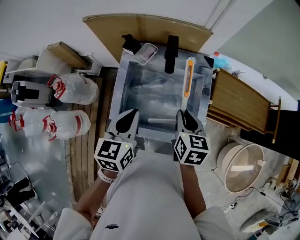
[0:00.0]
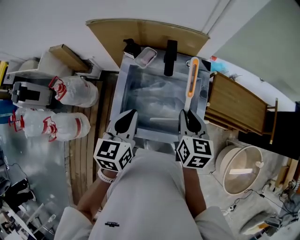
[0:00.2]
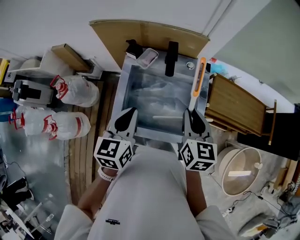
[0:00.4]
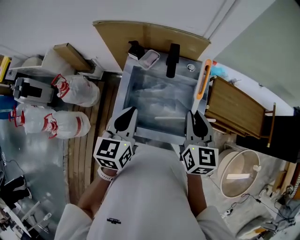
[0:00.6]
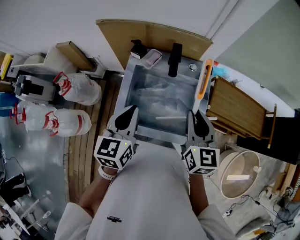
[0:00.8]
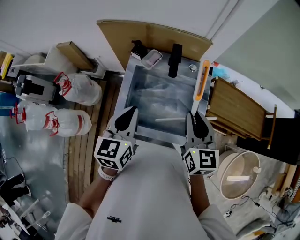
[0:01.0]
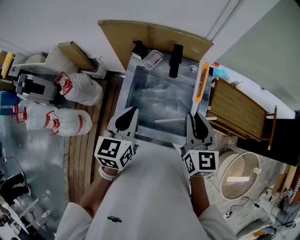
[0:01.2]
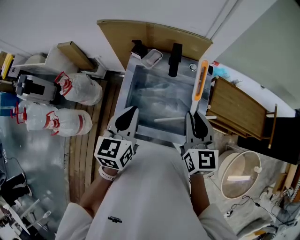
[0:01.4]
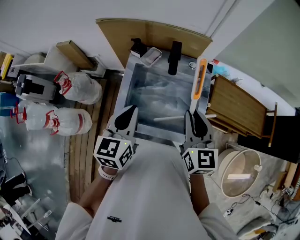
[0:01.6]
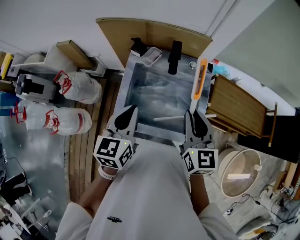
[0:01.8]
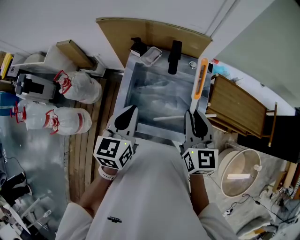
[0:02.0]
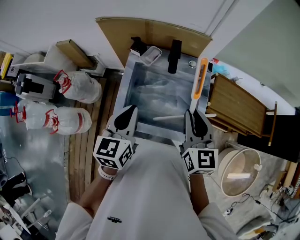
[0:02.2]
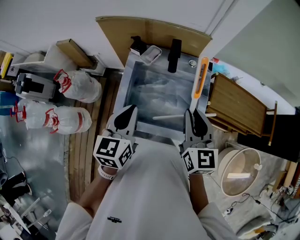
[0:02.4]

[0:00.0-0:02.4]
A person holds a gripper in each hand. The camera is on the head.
0:00.0 to 0:01.2: The left gripper shifts about 5 cm upward. Meanwhile the right gripper travels upward by approximately 10 cm, and turns by some 30 degrees.
0:01.2 to 0:02.4: Both grippers stay about where they are.

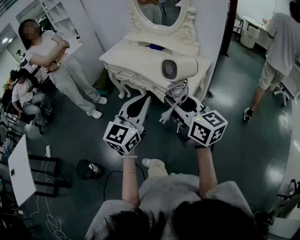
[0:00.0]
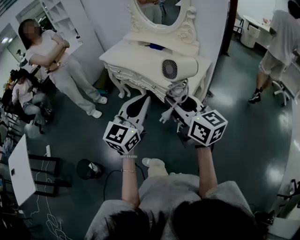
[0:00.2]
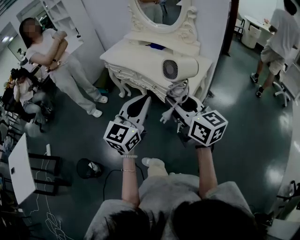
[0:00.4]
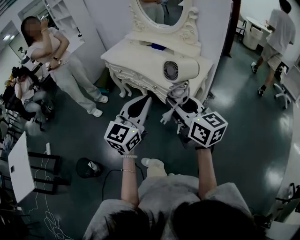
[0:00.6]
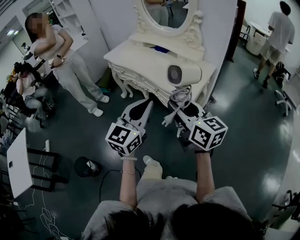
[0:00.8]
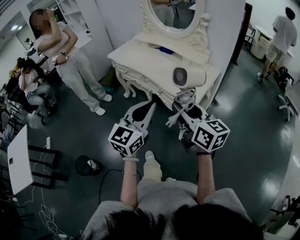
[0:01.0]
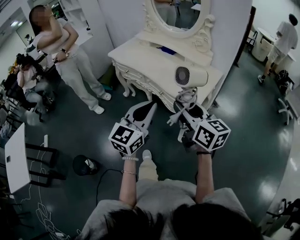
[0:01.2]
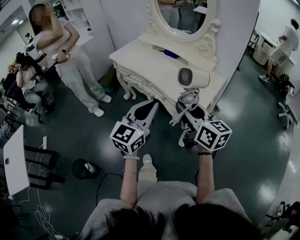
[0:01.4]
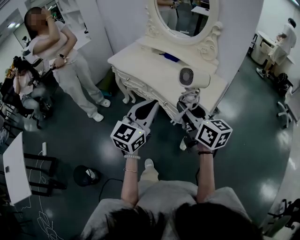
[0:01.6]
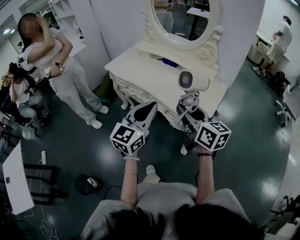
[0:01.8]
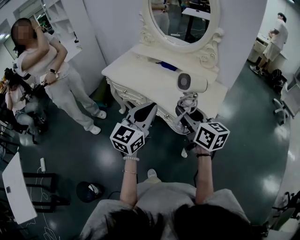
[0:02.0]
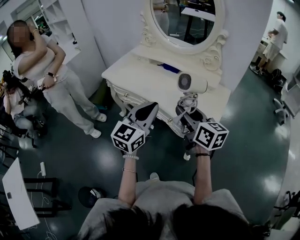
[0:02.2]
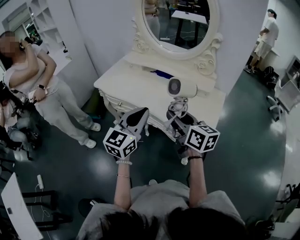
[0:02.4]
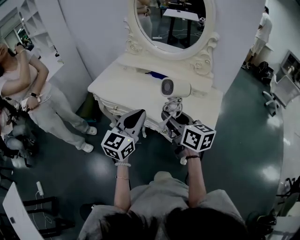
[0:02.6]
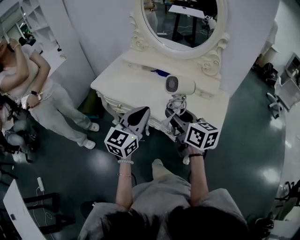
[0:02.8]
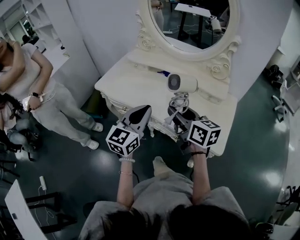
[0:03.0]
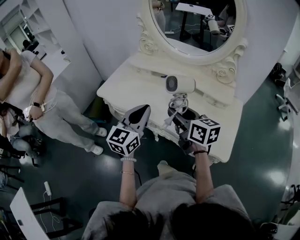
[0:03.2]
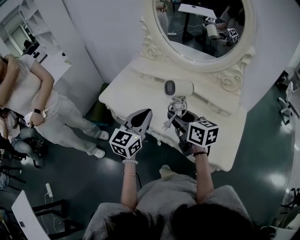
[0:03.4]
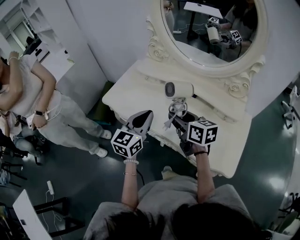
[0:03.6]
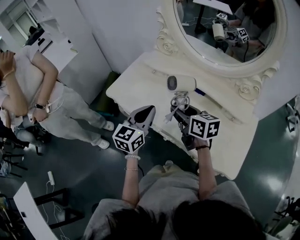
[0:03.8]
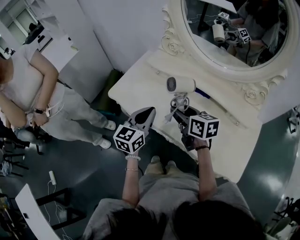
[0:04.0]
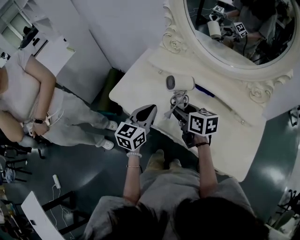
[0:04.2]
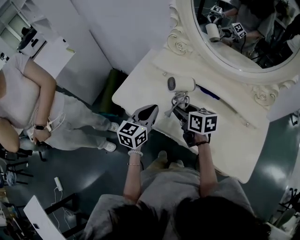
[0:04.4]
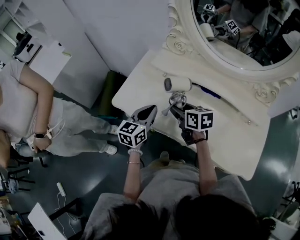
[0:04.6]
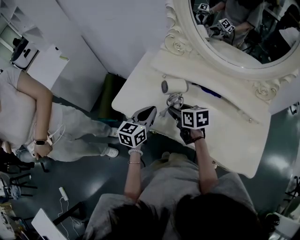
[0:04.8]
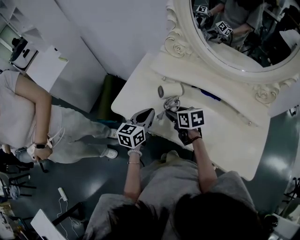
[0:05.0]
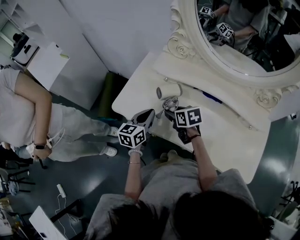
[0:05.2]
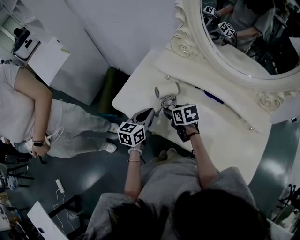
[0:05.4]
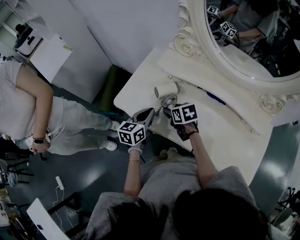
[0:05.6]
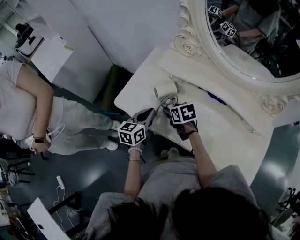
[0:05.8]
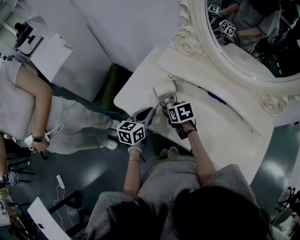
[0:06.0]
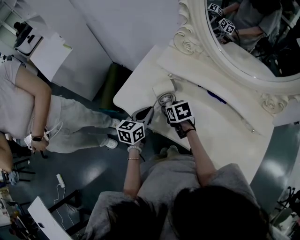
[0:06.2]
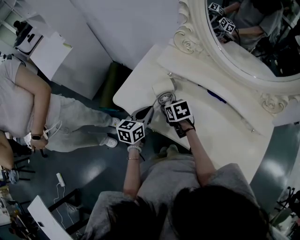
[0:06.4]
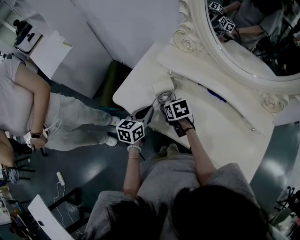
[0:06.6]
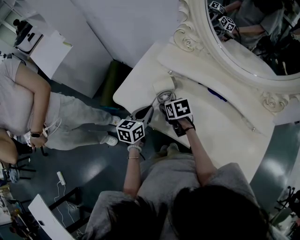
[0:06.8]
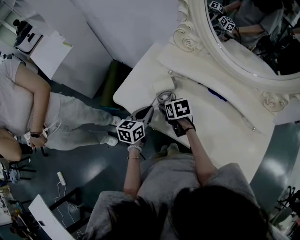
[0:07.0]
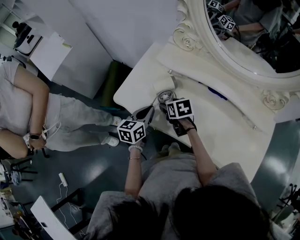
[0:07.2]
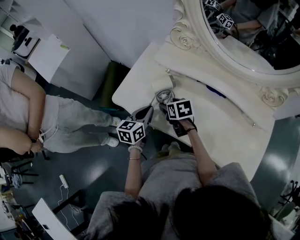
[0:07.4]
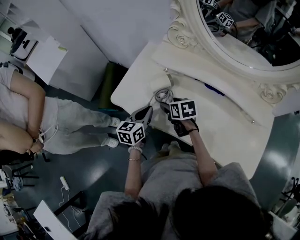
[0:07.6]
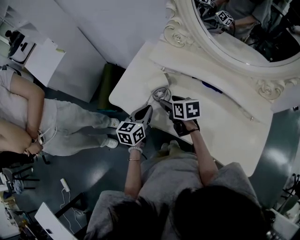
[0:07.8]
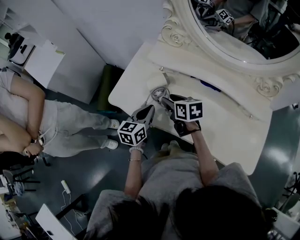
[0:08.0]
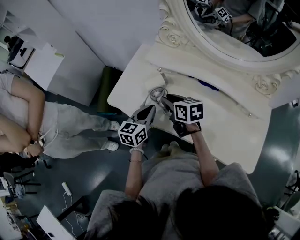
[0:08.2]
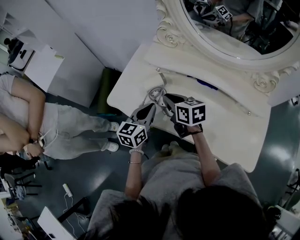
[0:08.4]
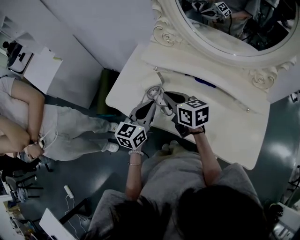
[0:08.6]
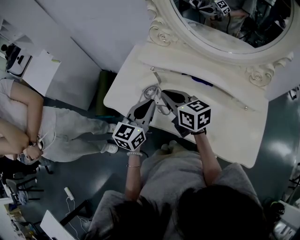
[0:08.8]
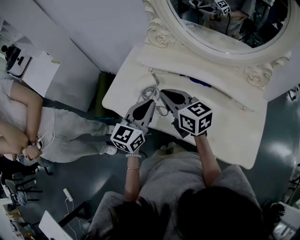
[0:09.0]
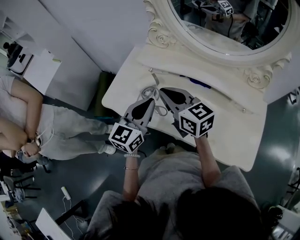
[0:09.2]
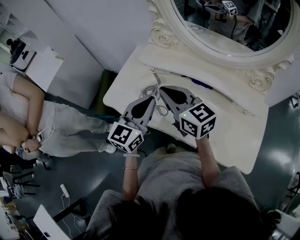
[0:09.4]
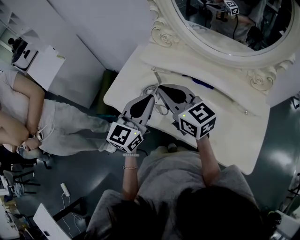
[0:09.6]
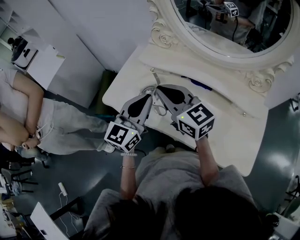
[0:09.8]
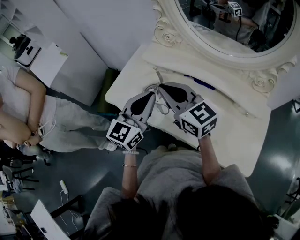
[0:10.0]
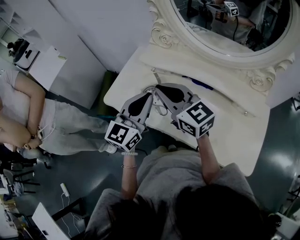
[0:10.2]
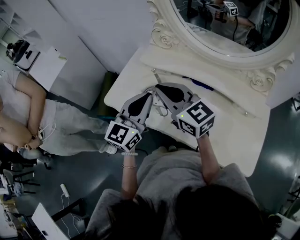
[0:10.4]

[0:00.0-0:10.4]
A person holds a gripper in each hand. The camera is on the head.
0:00.0 to 0:01.4: The grippers both shift forward by some 10 cm.
0:01.4 to 0:03.0: The grippers both shift forward and to the left by about 35 cm.
0:03.0 to 0:04.4: Both grippers travel together forward, to the left and downward, approximately 30 cm. The right gripper rotates roughly 20 degrees.
0:04.4 to 0:06.0: The left gripper is displaced downward and forward by some 10 cm. The right gripper moves downward, to the left and forward, some 15 cm, and swivels some 30 degrees.
0:06.0 to 0:07.4: The grippers stay close to where they were, moving slightly.
0:07.4 to 0:09.0: The left gripper heads upward and to the right, covering about 15 cm, and rotates some 30 degrees; the right gripper goes roughly 20 cm upward, tilts its fingers some 40 degrees upward, and closes.
0:09.0 to 0:10.4: The right gripper goes some 5 cm upward.

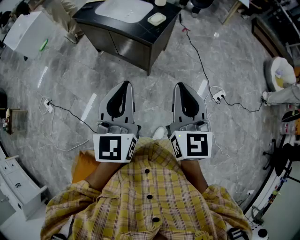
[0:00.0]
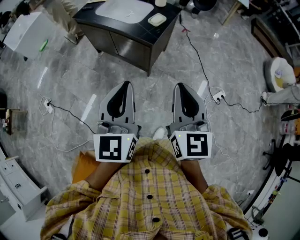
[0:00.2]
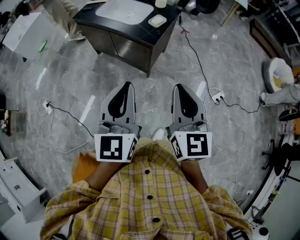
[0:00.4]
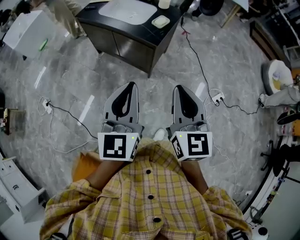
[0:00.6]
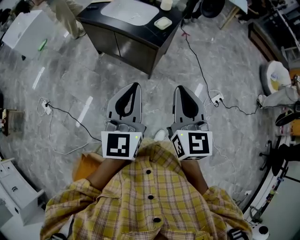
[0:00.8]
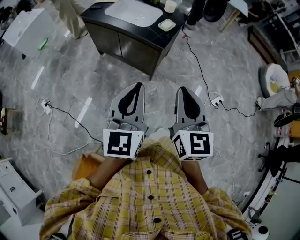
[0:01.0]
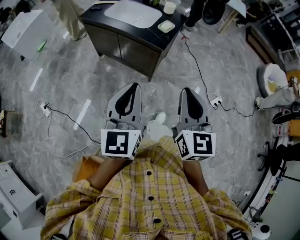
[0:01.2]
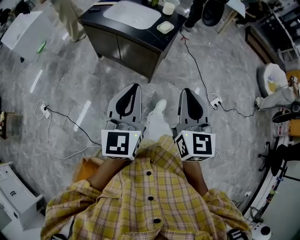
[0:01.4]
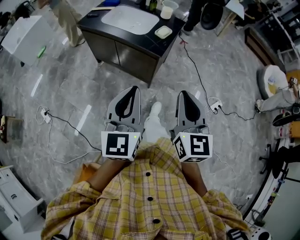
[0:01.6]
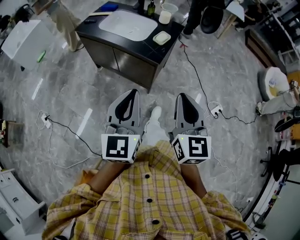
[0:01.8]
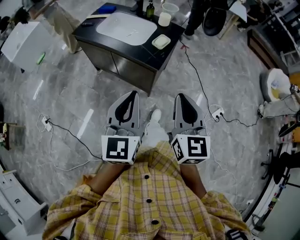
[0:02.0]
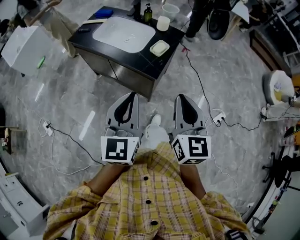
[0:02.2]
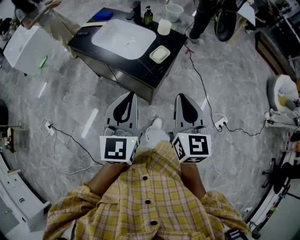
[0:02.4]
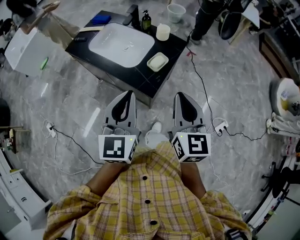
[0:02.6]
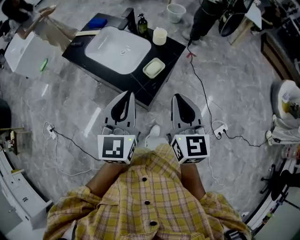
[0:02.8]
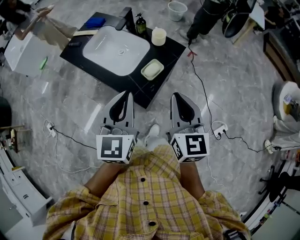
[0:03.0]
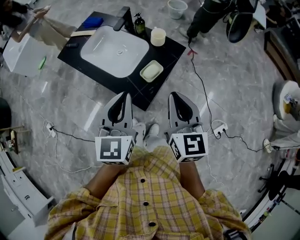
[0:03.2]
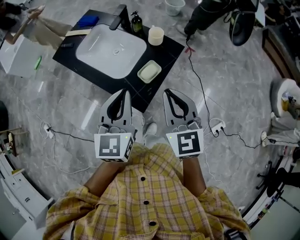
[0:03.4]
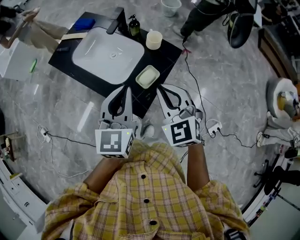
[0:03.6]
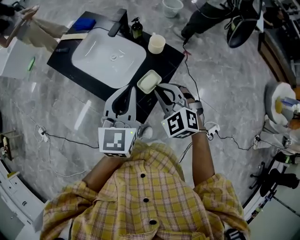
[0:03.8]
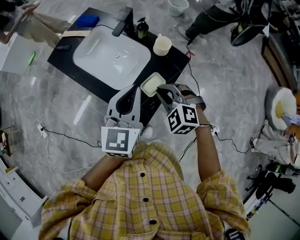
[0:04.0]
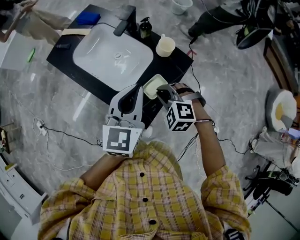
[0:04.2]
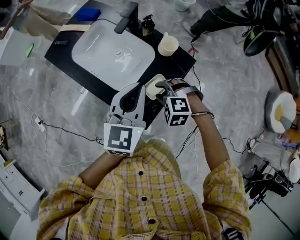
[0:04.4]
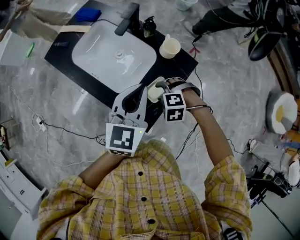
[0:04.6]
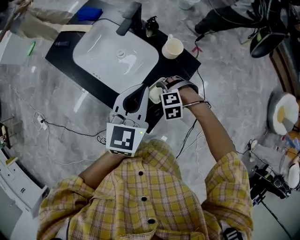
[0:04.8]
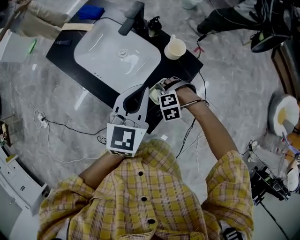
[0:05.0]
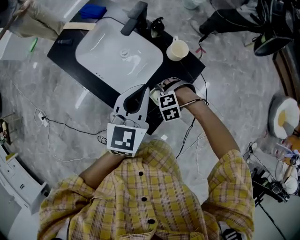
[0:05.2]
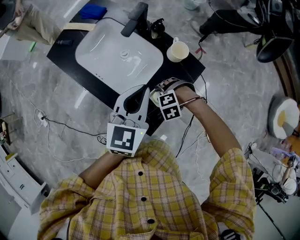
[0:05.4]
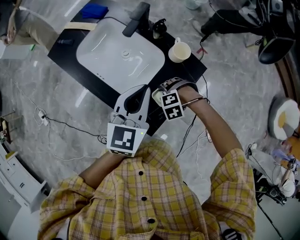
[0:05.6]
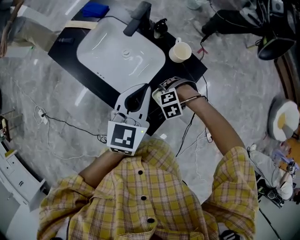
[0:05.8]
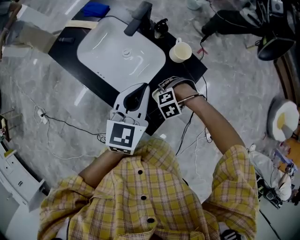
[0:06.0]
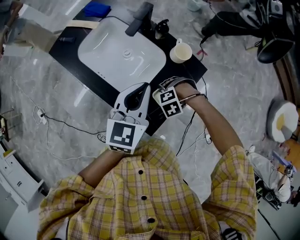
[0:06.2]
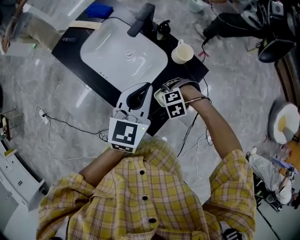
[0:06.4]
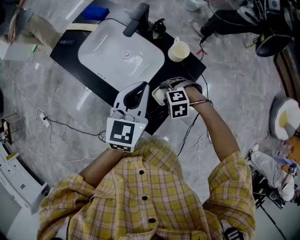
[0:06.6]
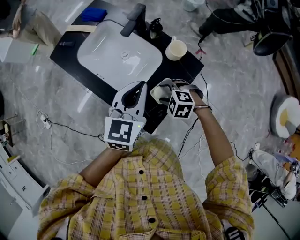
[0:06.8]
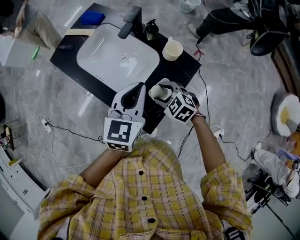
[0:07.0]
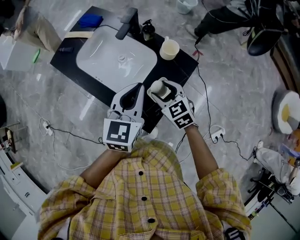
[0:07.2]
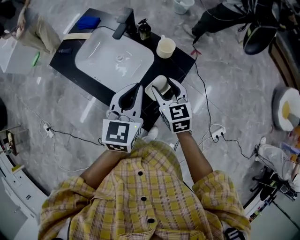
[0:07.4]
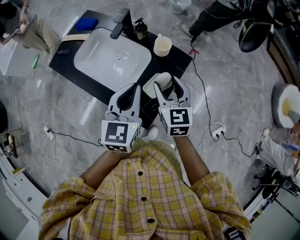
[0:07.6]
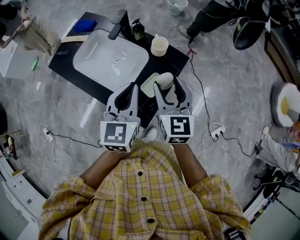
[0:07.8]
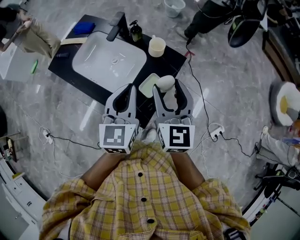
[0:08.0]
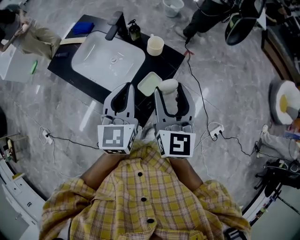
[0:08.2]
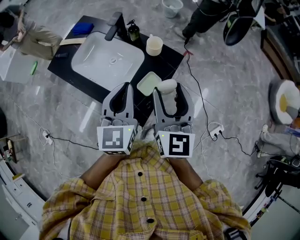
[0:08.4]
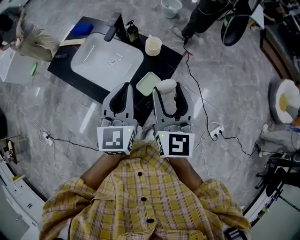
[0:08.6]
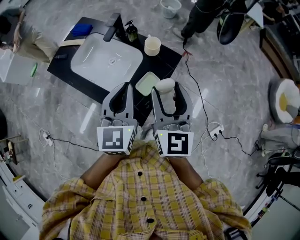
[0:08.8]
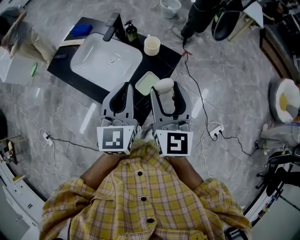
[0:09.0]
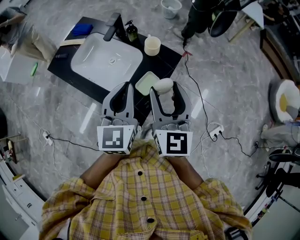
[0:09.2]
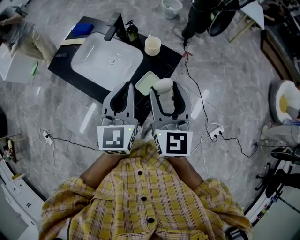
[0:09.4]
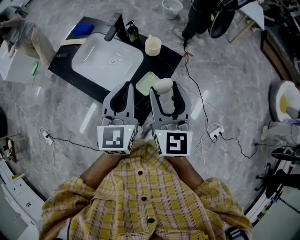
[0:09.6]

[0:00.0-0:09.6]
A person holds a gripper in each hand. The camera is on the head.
0:00.0 to 0:01.6: The grippers both shift to the left by approximately 5 cm.
0:01.6 to 0:03.2: The pair of grippers is taken forward, some 50 cm.
0:03.2 to 0:04.8: The right gripper moves downward, approximately 30 cm, tilts its fingers approximately 70 degrees downward, and opens up. Meanwhile the left gripper shifts by roughly 25 cm.
0:06.4 to 0:08.0: The left gripper shifts by roughly 10 cm. Meanwhile the right gripper shifts some 30 cm upward, and tilts its fingers approximately 70 degrees upward.
0:08.0 to 0:09.6: There are only small adjustments of the grippers.

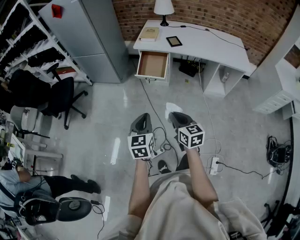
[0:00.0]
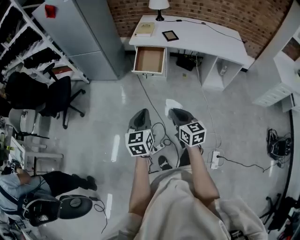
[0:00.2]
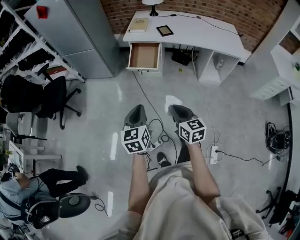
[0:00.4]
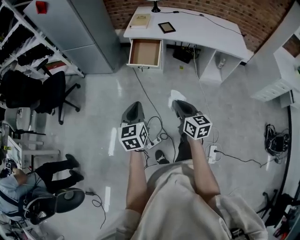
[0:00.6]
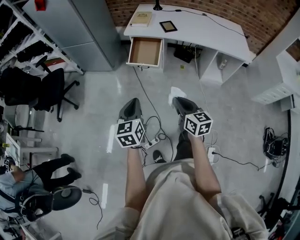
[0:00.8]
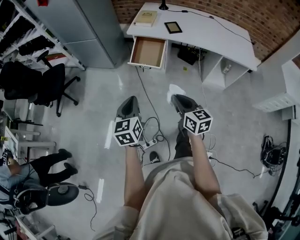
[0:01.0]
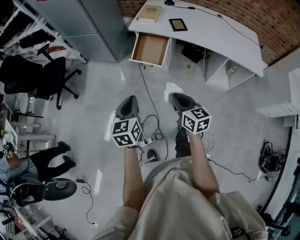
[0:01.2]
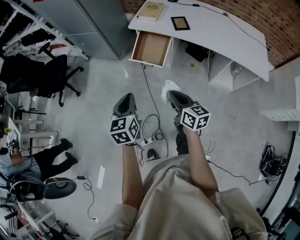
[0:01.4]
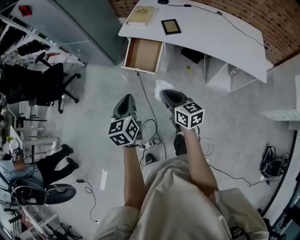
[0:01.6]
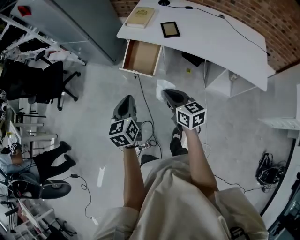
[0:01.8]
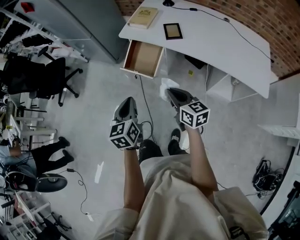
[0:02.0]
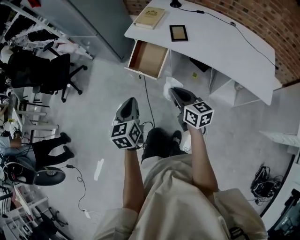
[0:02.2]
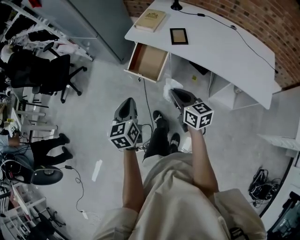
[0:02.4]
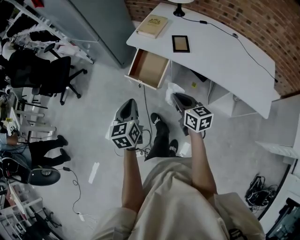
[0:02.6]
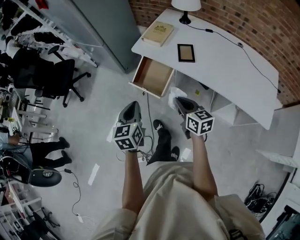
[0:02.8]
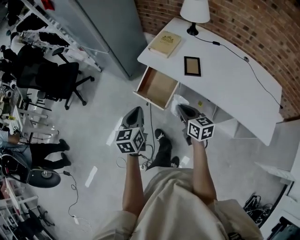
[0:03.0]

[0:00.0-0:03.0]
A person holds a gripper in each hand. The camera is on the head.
0:00.0 to 0:01.6: Both grippers travel together forward and to the right, roughly 30 cm.
0:01.6 to 0:03.0: The two grippers go approximately 20 cm forward and to the right.
